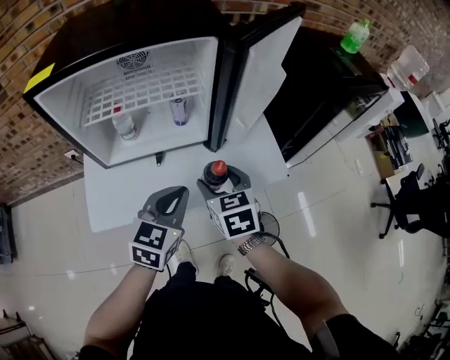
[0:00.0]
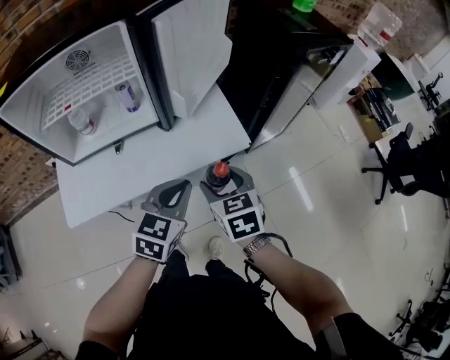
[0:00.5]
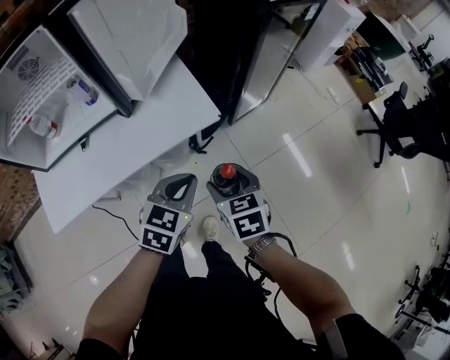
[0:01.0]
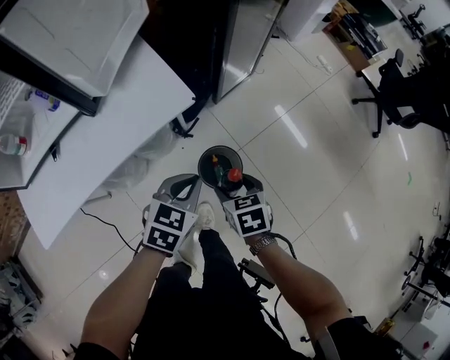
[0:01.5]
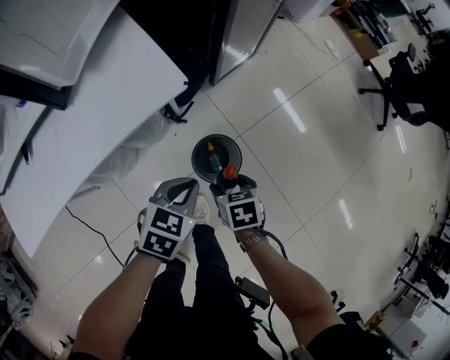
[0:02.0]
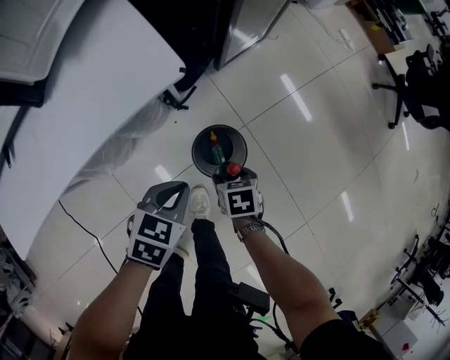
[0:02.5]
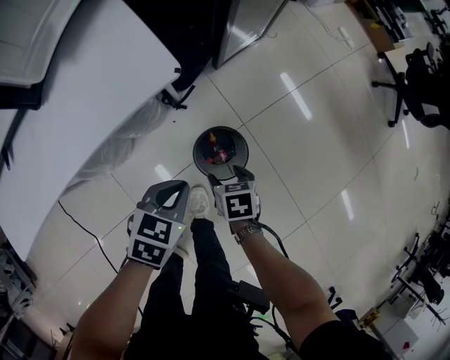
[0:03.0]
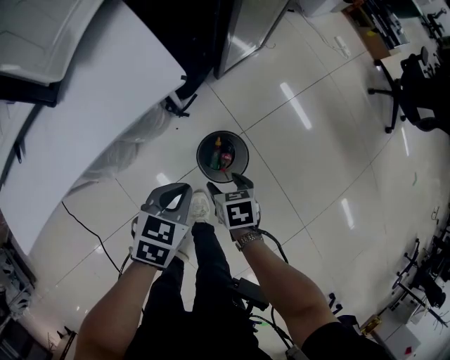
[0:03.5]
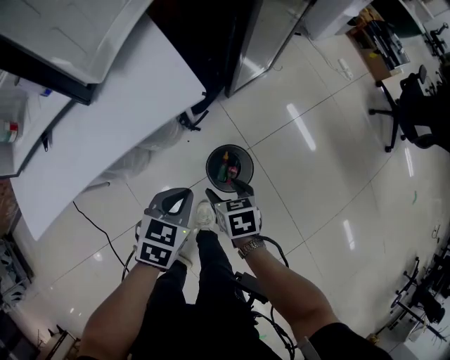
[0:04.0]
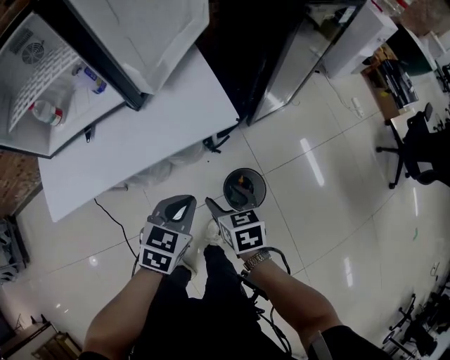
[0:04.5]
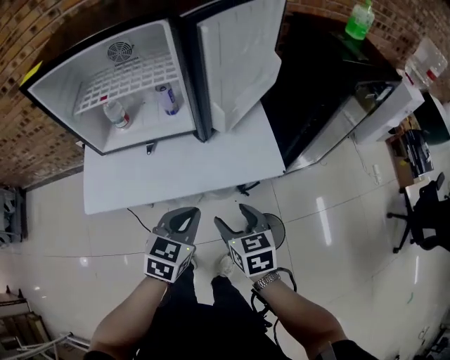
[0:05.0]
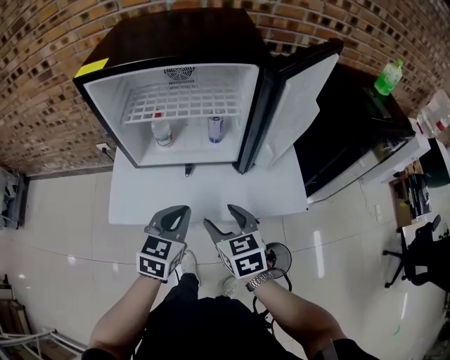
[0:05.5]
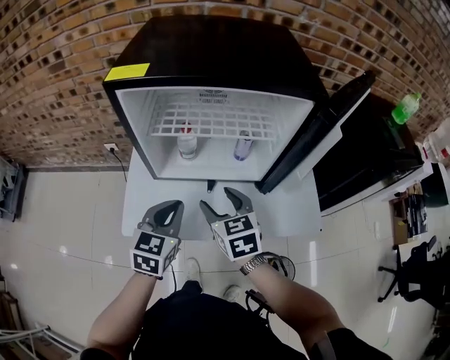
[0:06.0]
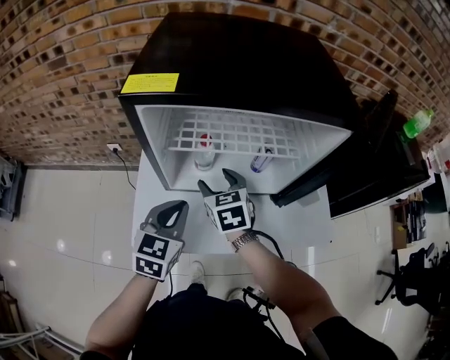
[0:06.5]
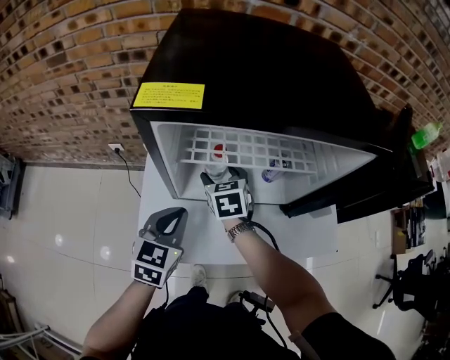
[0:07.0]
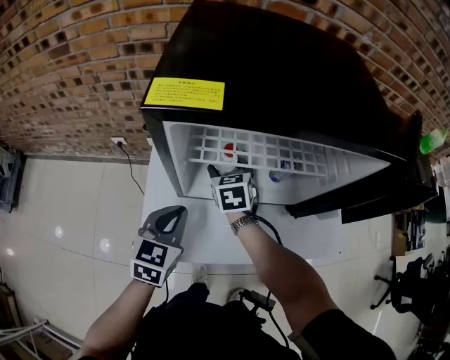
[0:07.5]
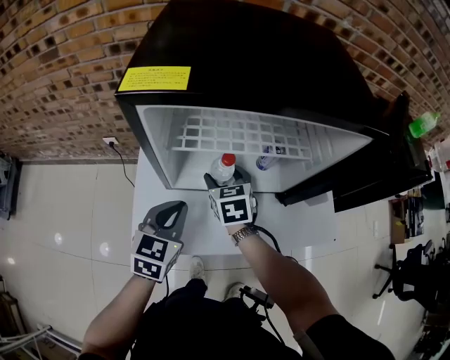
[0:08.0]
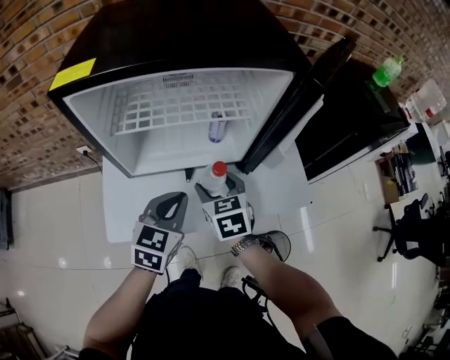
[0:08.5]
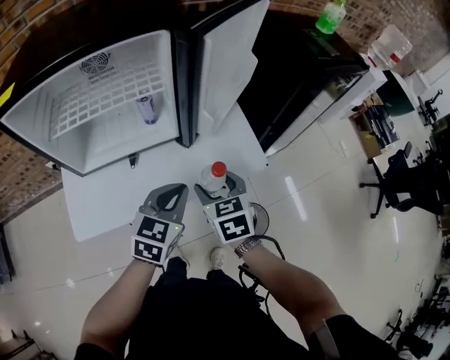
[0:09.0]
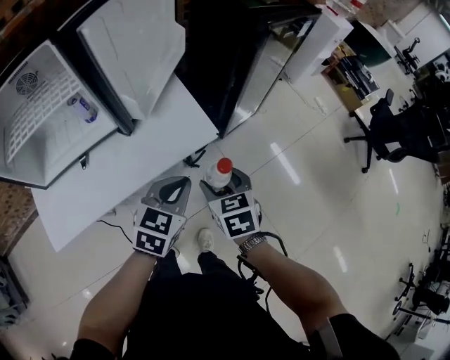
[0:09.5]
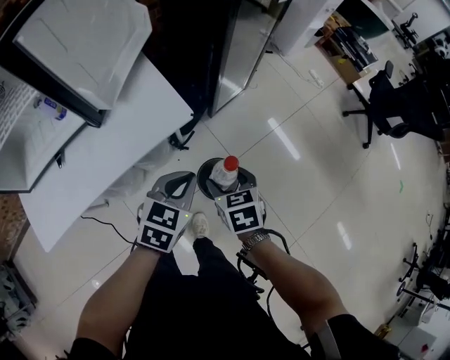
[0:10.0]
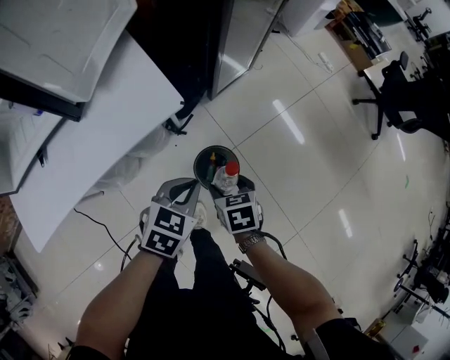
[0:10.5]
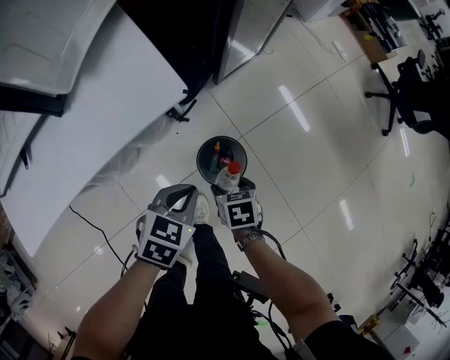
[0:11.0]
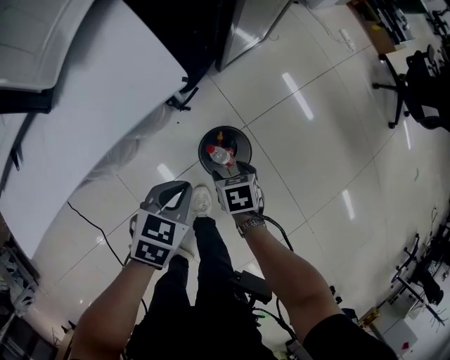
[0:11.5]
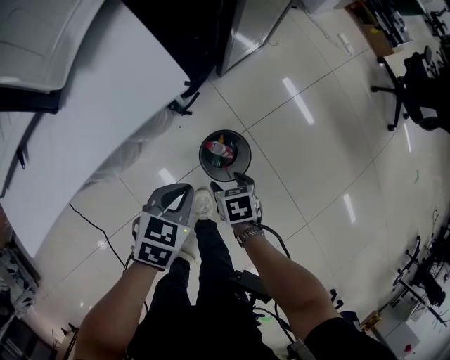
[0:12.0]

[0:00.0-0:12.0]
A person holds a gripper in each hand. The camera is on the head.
0:00.0 to 0:02.0: Both grippers travel together to the right and downward, some 40 cm. The right gripper turns by about 40 degrees, while the left gripper rotates some 40 degrees.
0:02.0 to 0:04.0: The right gripper goes downward and returns, roughly 10 cm each way.
0:04.0 to 0:06.0: The two grippers travel together, about 50 cm. The left gripper rotates approximately 50 degrees. Meanwhile the right gripper rolls counterclockwise, seen from behind, by roughly 40 degrees.
0:06.0 to 0:08.0: The right gripper is displaced forward, to the left and downward by roughly 15 cm. The left gripper moves to the left and forward, roughly 10 cm.
0:08.0 to 0:10.0: Both grippers are carried about 60 cm. The right gripper changes its angle by about 40 degrees; the left gripper rotates some 40 degrees.
0:10.0 to 0:12.0: The two grippers go approximately 20 cm downward. The right gripper swivels some 20 degrees.

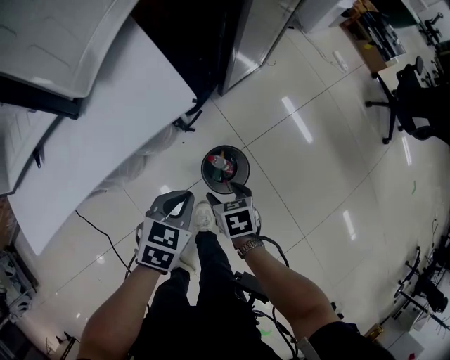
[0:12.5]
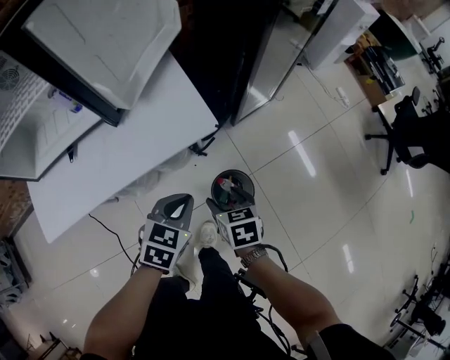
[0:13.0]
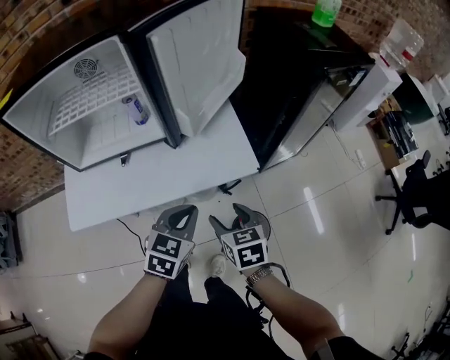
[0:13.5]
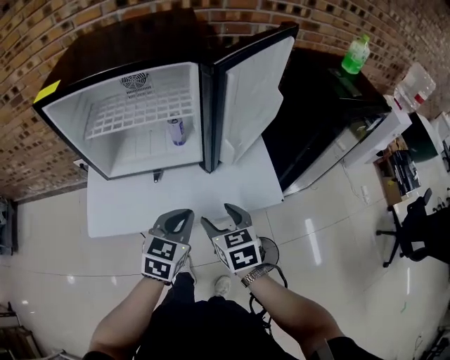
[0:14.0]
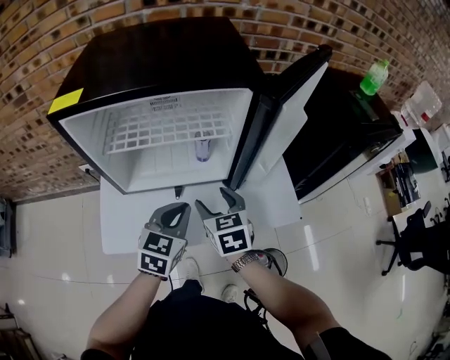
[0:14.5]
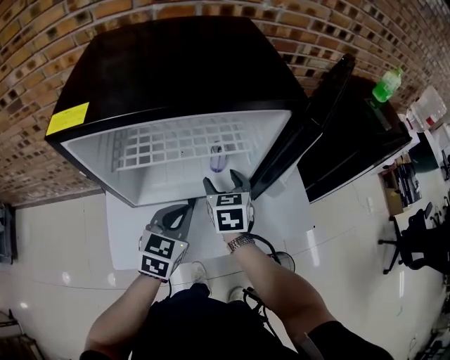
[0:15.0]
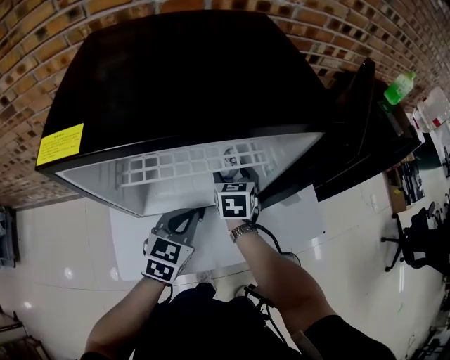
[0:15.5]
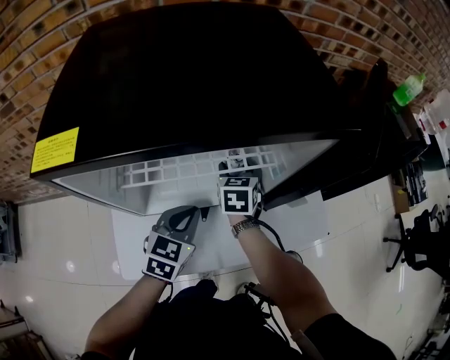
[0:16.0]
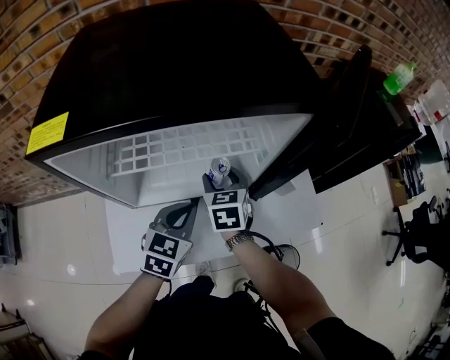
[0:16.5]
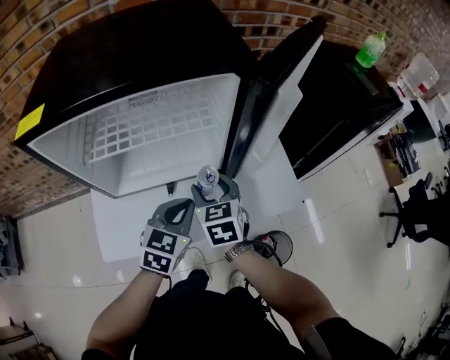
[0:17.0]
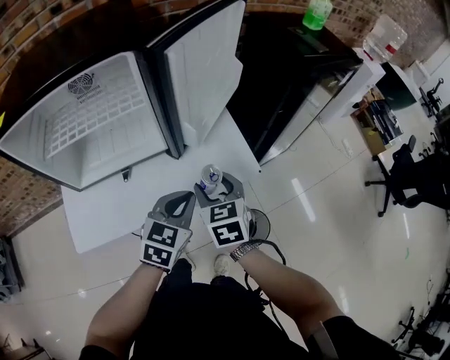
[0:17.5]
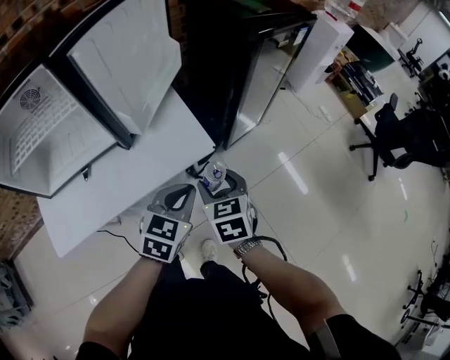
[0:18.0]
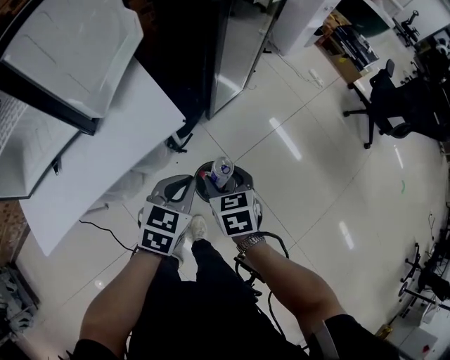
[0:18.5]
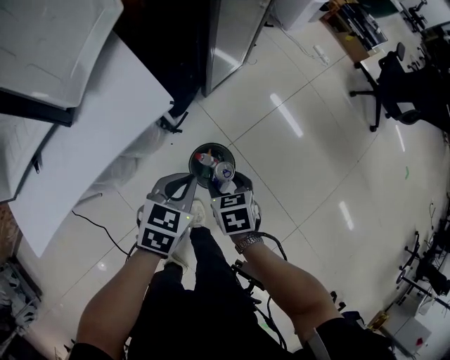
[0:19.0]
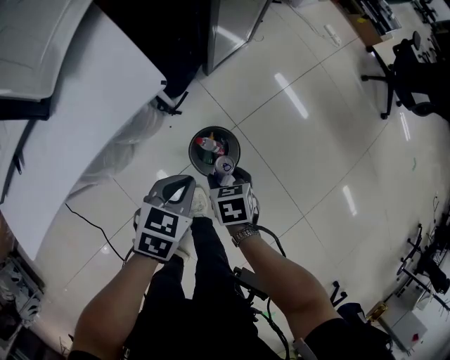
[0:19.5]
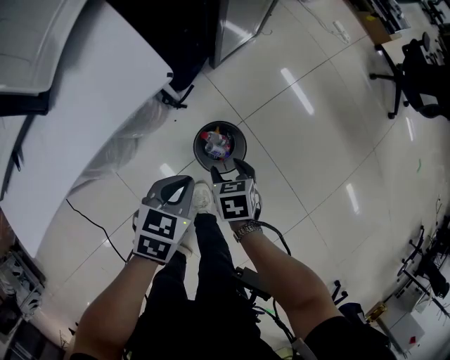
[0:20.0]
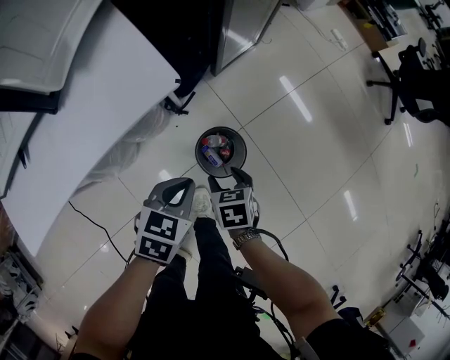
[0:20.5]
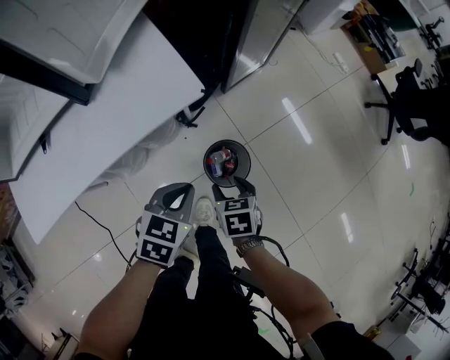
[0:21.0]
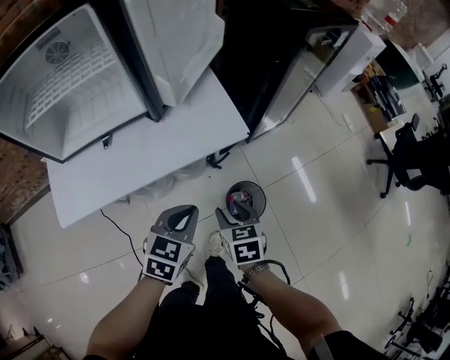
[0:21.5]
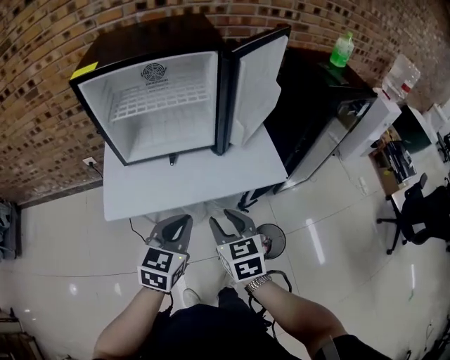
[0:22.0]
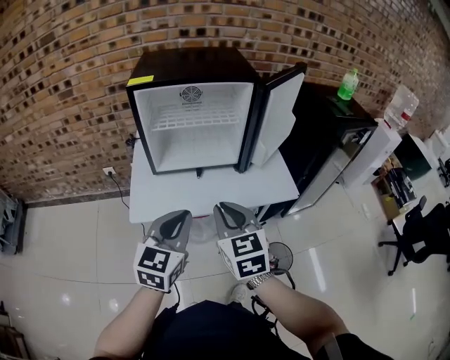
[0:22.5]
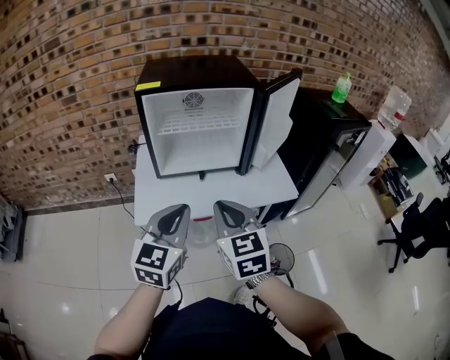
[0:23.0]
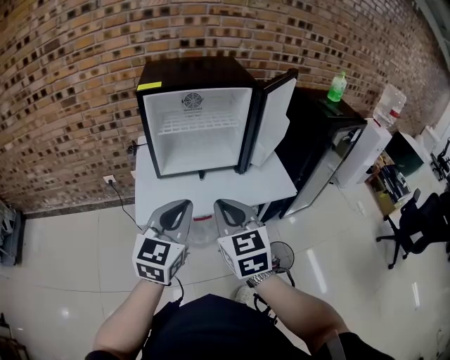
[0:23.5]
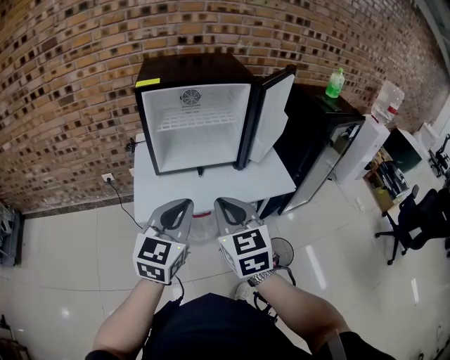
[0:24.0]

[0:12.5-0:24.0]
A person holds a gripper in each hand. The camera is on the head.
0:12.5 to 0:14.5: The right gripper goes approximately 50 cm to the left, upward and forward, and turns by some 50 degrees. The left gripper moves to the left and upward, some 40 cm, and turns by some 40 degrees.
0:14.5 to 0:16.5: The right gripper shifts roughly 15 cm forward and to the left. Meanwhile the left gripper heads to the left and forward, covering roughly 10 cm.
0:16.5 to 0:18.5: Both grippers are carried to the right, about 50 cm. The right gripper changes its angle by about 30 degrees, while the left gripper rotates approximately 30 degrees.
0:18.5 to 0:20.0: The grippers both shift downward by some 20 cm.
0:20.0 to 0:22.0: The right gripper moves upward, some 40 cm, and tips its fingers upward by about 30 degrees. The left gripper changes place by approximately 40 cm, and rotates about 50 degrees.
0:22.0 to 0:24.0: Both grippers move upward, to the left and backward, about 20 cm. The right gripper closes its fingers.

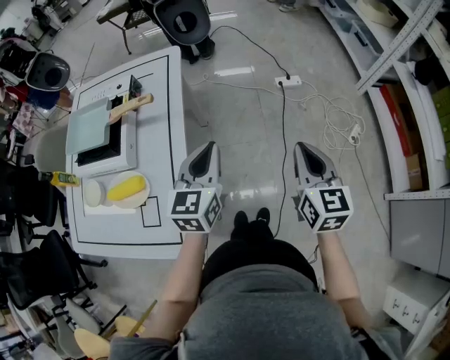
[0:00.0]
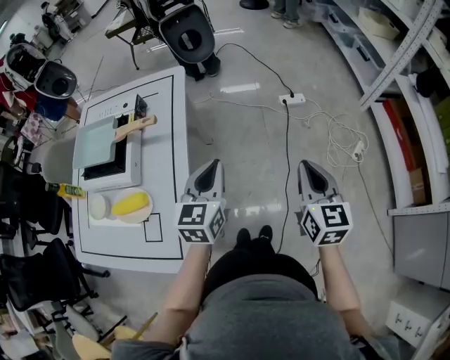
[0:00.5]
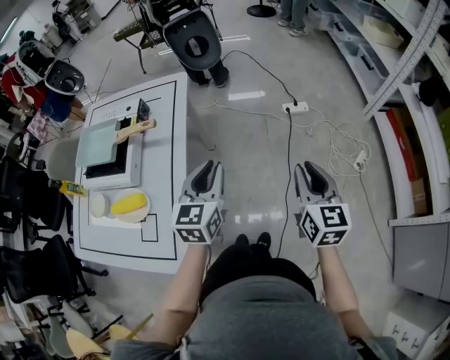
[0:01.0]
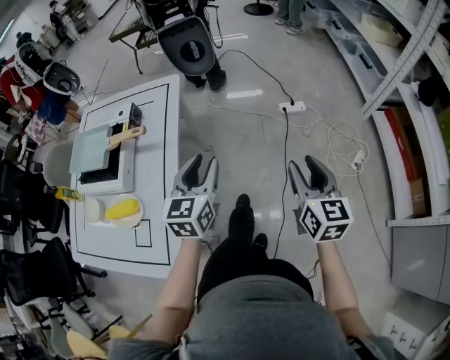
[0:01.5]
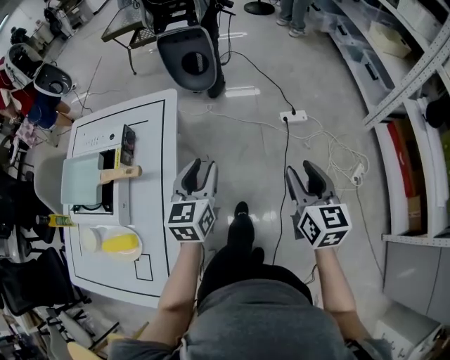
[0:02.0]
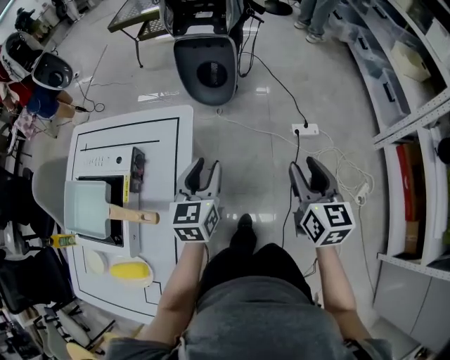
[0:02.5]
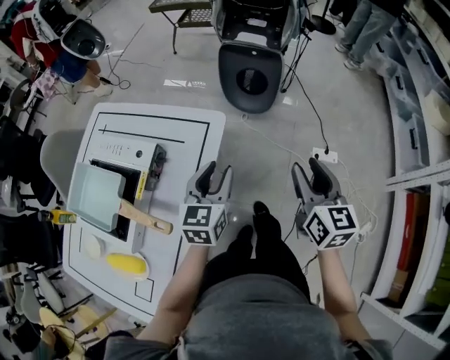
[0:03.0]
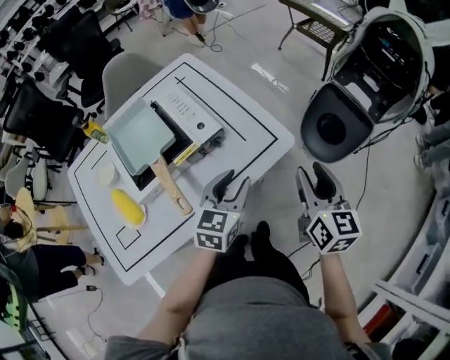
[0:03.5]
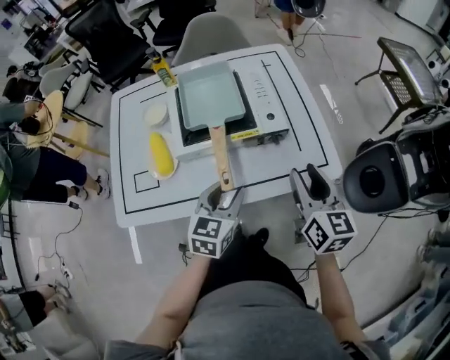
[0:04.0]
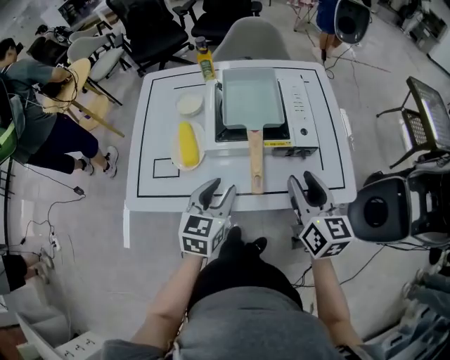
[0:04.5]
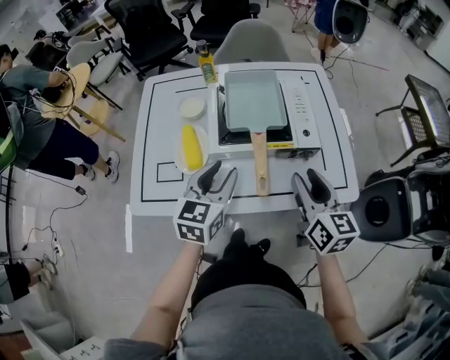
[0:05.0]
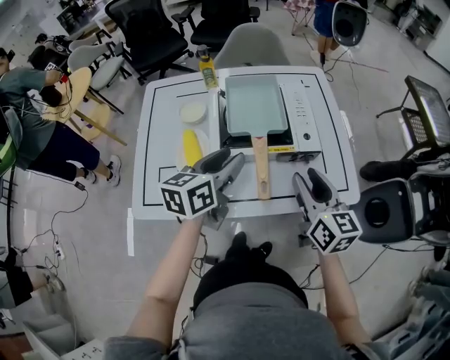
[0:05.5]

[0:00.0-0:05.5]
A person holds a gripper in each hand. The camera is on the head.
0:00.0 to 0:02.0: The grippers both shift forward by approximately 15 cm. The right gripper opens up, while the left gripper opens up.
0:02.0 to 0:03.5: The right gripper changes place by roughly 40 cm, and turns by roughly 50 degrees; the left gripper shifts by approximately 20 cm, and changes its angle by about 40 degrees.
0:03.5 to 0:05.5: The right gripper ends up approximately 25 cm from where it was, and rotates roughly 40 degrees. Meanwhile the left gripper shifts by roughly 25 cm, and turns by roughly 40 degrees.
